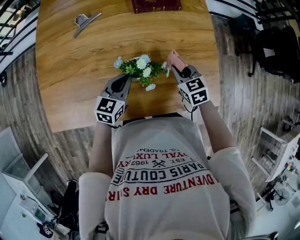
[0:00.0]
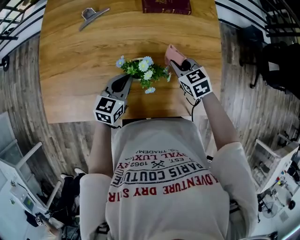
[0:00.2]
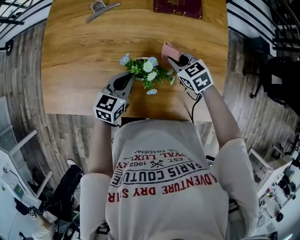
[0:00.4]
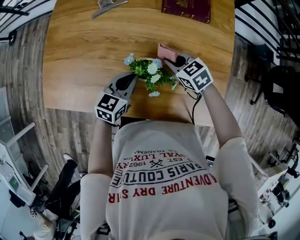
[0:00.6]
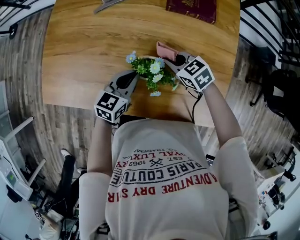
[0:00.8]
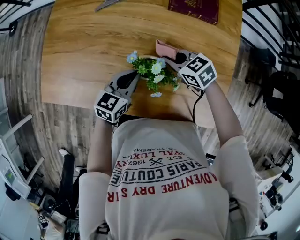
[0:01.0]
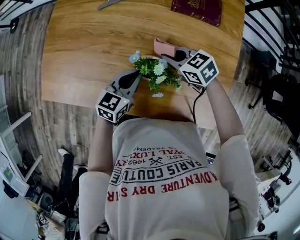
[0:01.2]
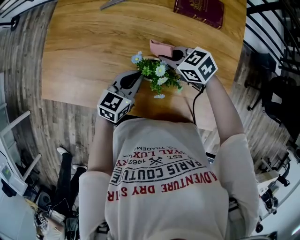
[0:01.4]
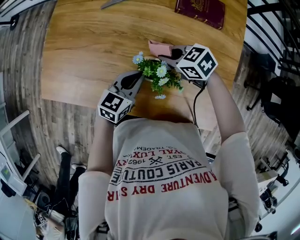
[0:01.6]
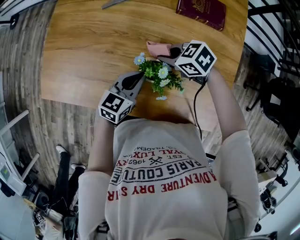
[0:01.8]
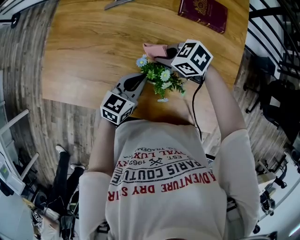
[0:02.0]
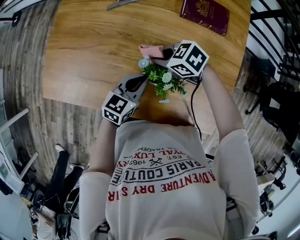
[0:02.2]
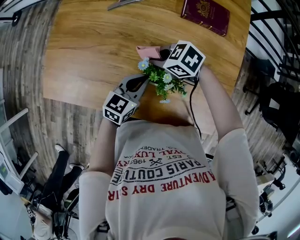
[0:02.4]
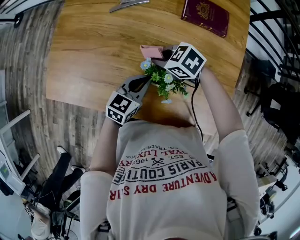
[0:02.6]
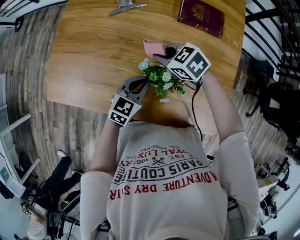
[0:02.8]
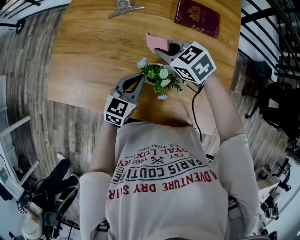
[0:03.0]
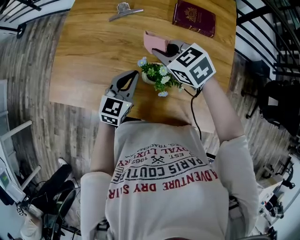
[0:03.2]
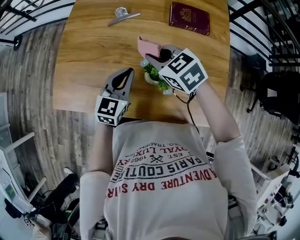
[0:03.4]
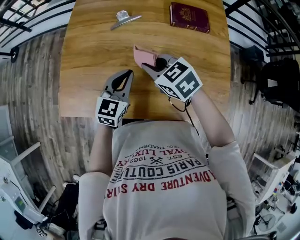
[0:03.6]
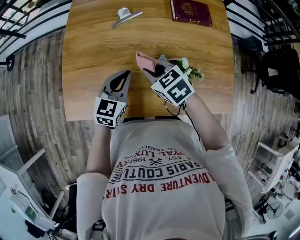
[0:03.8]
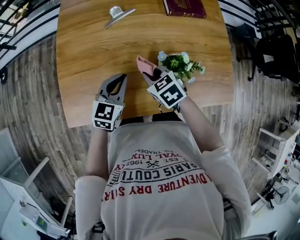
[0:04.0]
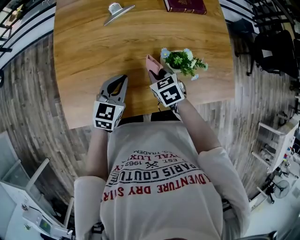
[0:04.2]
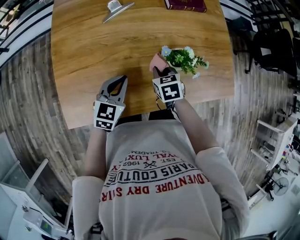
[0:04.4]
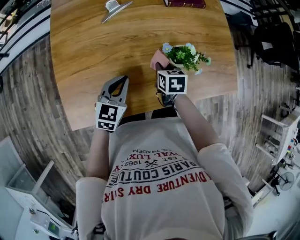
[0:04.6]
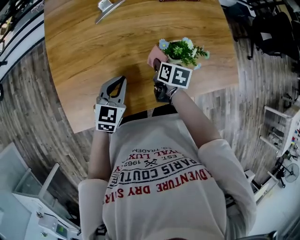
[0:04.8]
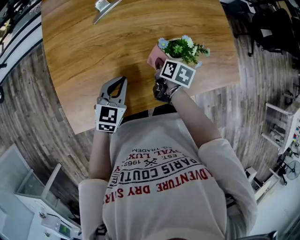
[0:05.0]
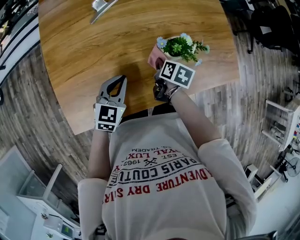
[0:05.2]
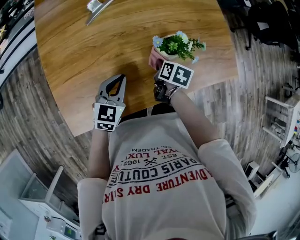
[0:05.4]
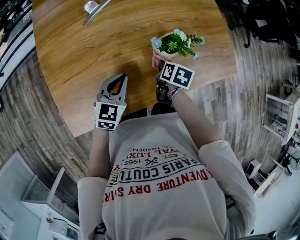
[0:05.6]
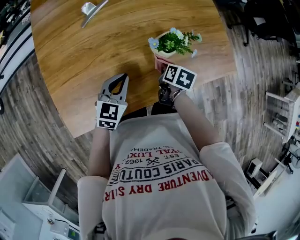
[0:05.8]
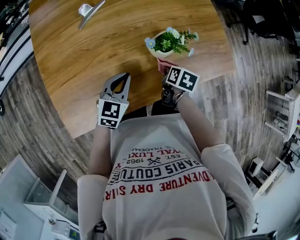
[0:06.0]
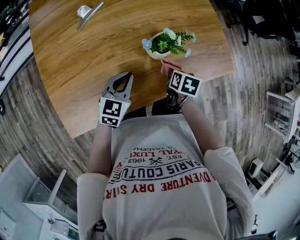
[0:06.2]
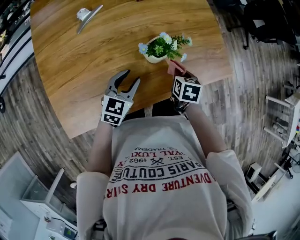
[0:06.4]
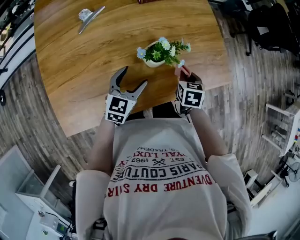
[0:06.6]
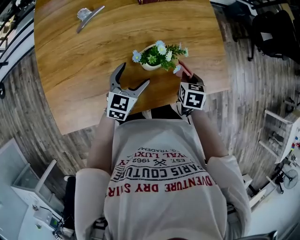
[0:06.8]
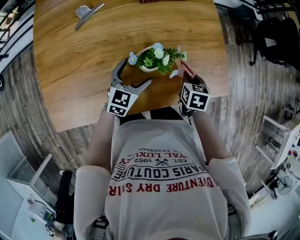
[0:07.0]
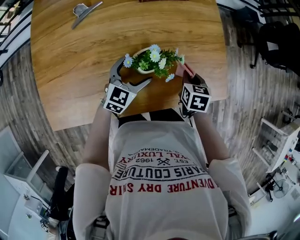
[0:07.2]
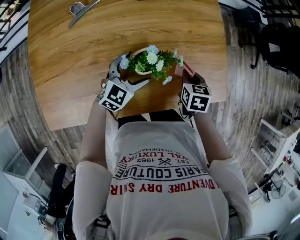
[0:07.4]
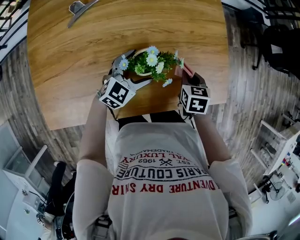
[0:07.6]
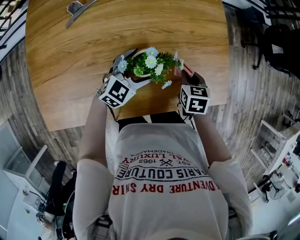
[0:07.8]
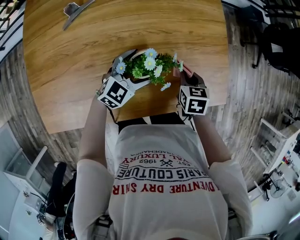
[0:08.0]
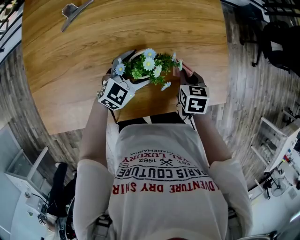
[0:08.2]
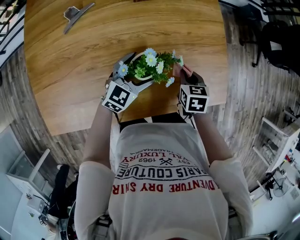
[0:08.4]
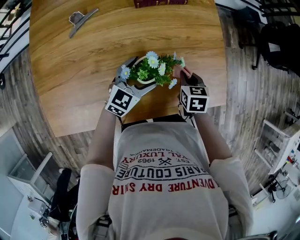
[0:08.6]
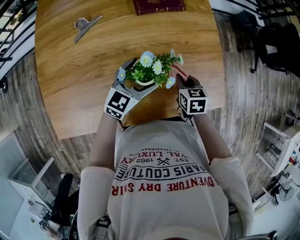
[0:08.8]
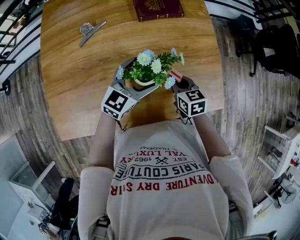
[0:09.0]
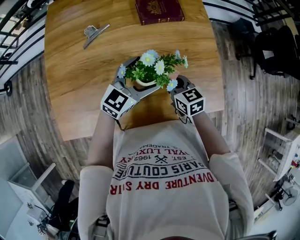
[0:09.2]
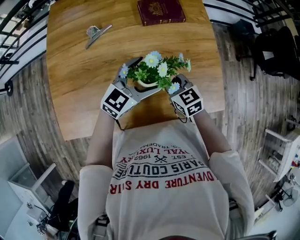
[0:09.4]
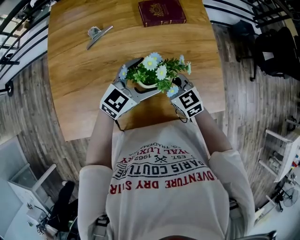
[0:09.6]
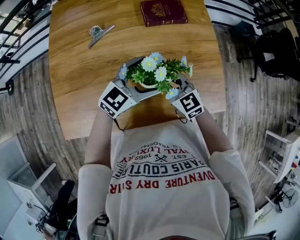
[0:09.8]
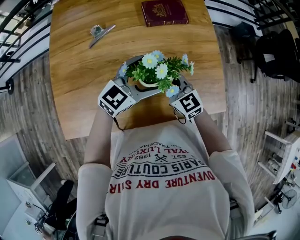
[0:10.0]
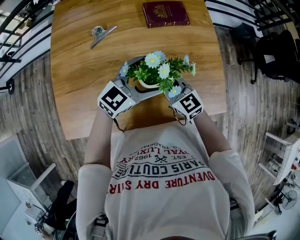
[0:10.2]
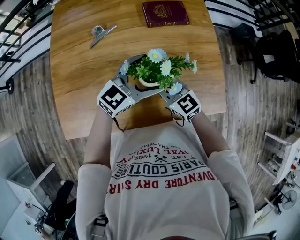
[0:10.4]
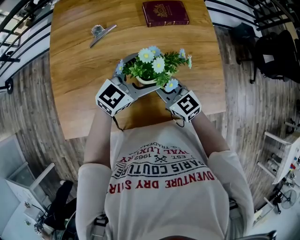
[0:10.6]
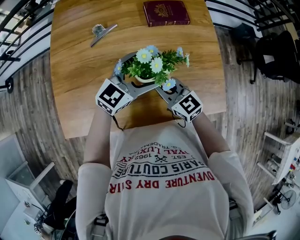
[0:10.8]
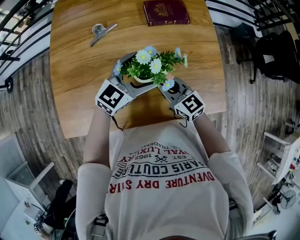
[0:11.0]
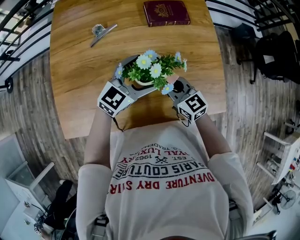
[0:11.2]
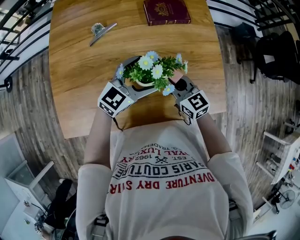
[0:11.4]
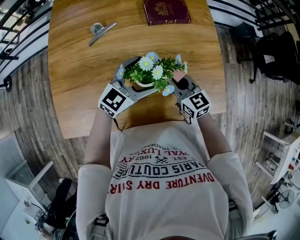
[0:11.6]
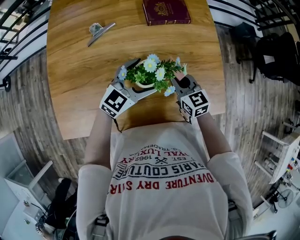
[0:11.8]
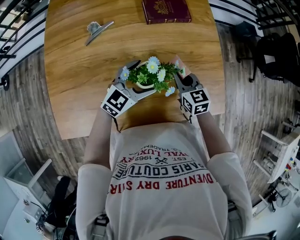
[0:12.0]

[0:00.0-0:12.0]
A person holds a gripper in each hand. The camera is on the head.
0:00.0 to 0:01.6: The right gripper shifts by about 15 cm, and swivels roughly 50 degrees.
0:01.6 to 0:03.0: The right gripper heads upward, covering some 10 cm.
0:03.0 to 0:04.4: The left gripper shifts by roughly 15 cm, while the right gripper goes about 10 cm downward, and rotates approximately 60 degrees.
0:04.4 to 0:06.0: The left gripper moves to the right, approximately 5 cm. Meanwhile the right gripper travels to the right by about 15 cm, and twists approximately 50 degrees clockwise, seen from behind.
0:06.0 to 0:07.6: The grippers both shift forward and to the right by approximately 20 cm. The right gripper swivels approximately 40 degrees. Meanwhile the left gripper opens its fingers.
0:07.6 to 0:09.0: The right gripper shifts approximately 10 cm to the left, and turns by roughly 20 degrees; the left gripper is displaced upward by roughly 10 cm.
0:09.0 to 0:10.4: The left gripper travels upward by about 5 cm; the right gripper moves to the left and upward, roughly 15 cm, and rotates roughly 40 degrees.
0:10.4 to 0:12.0: The left gripper is displaced downward by approximately 10 cm, while the right gripper is displaced to the right, downward and forward by roughly 15 cm, and turns by some 20 degrees.

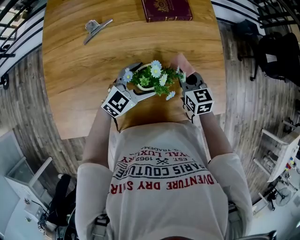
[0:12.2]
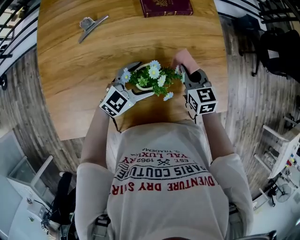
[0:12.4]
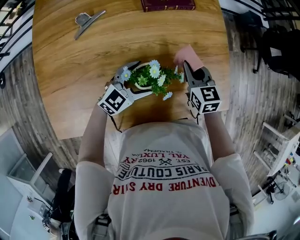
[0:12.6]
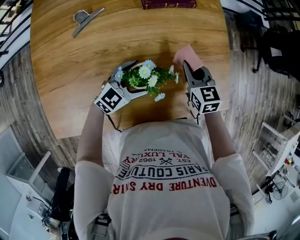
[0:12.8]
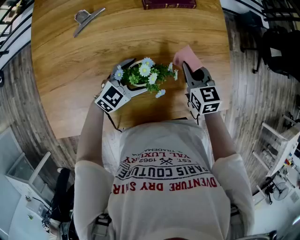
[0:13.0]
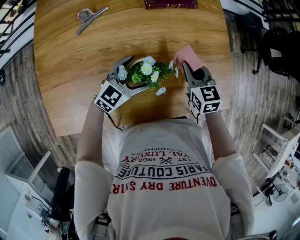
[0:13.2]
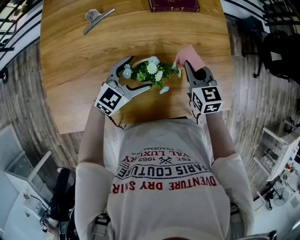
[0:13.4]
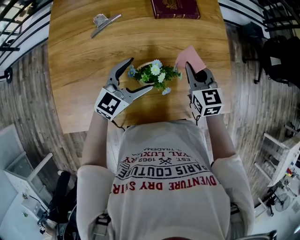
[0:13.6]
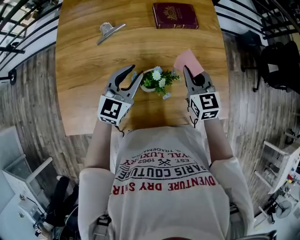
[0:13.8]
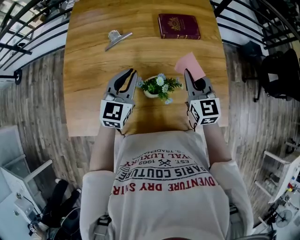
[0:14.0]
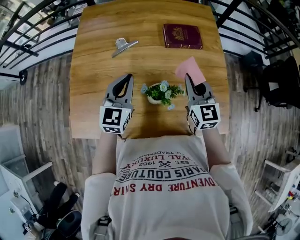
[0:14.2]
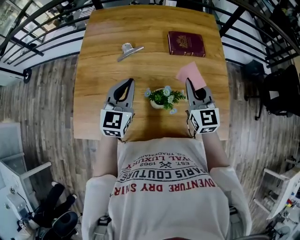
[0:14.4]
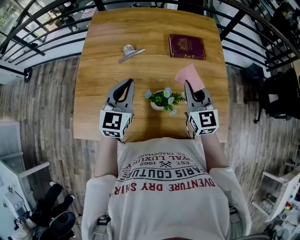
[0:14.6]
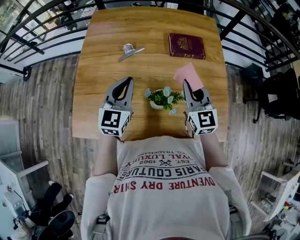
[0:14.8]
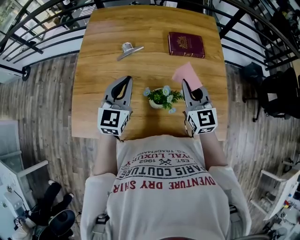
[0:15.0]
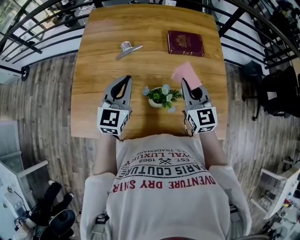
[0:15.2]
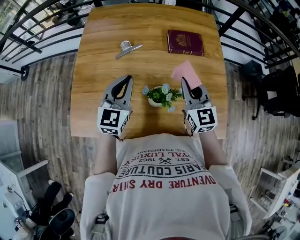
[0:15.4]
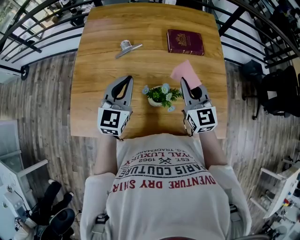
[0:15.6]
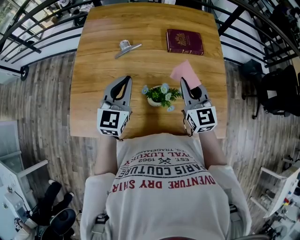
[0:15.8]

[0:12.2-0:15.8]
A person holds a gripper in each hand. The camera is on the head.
0:12.2 to 0:14.0: The right gripper is displaced upward by about 10 cm, while the left gripper travels to the left and upward by some 15 cm, rotates roughly 40 degrees, and closes.
0:14.0 to 0:15.8: The right gripper moves about 5 cm. Meanwhile the left gripper ends up roughly 5 cm from where it was.

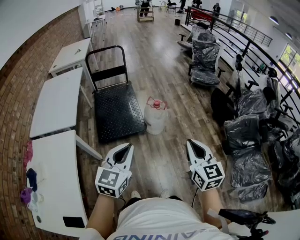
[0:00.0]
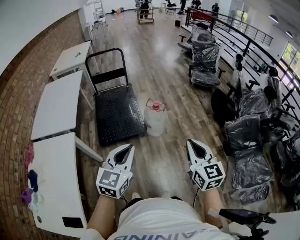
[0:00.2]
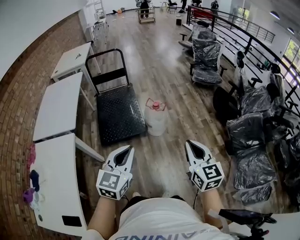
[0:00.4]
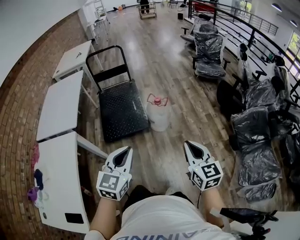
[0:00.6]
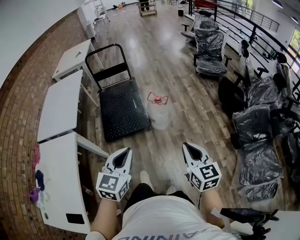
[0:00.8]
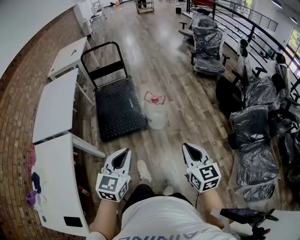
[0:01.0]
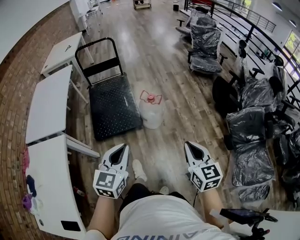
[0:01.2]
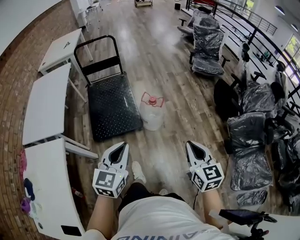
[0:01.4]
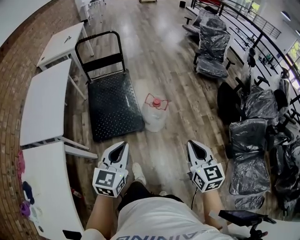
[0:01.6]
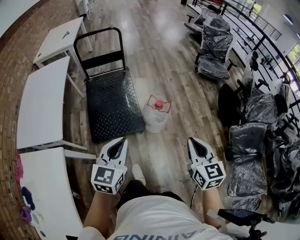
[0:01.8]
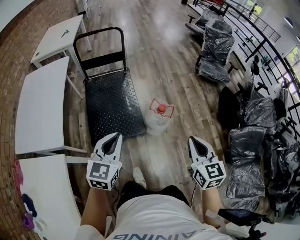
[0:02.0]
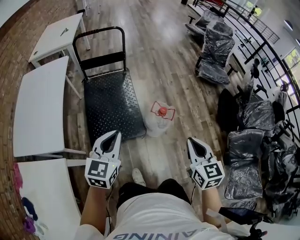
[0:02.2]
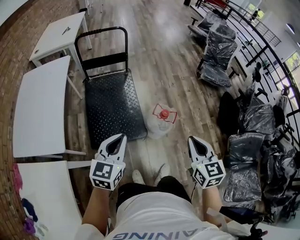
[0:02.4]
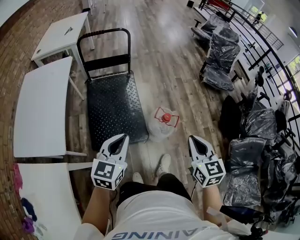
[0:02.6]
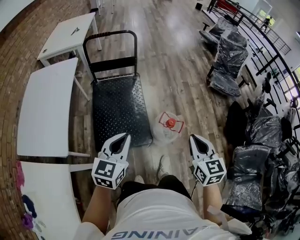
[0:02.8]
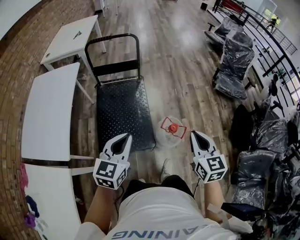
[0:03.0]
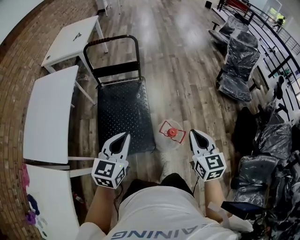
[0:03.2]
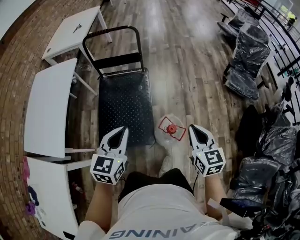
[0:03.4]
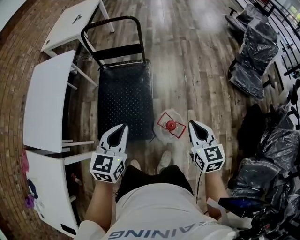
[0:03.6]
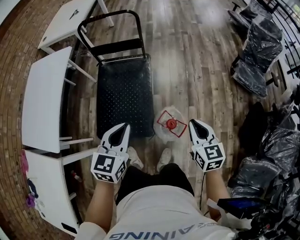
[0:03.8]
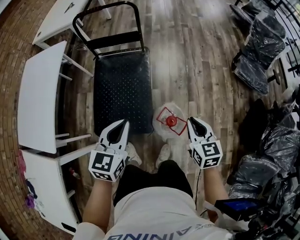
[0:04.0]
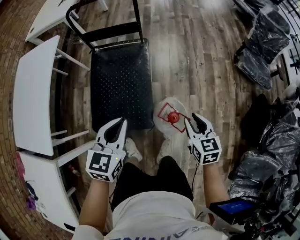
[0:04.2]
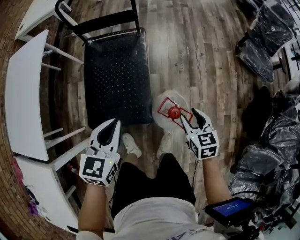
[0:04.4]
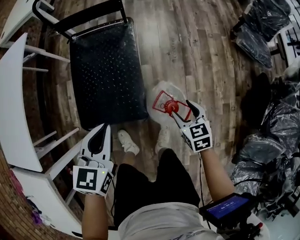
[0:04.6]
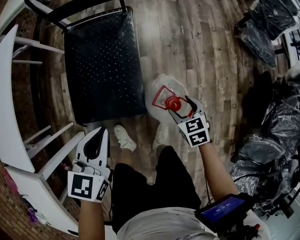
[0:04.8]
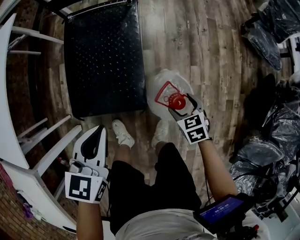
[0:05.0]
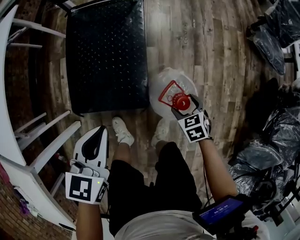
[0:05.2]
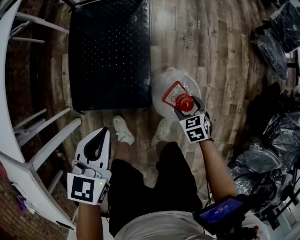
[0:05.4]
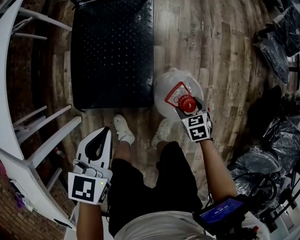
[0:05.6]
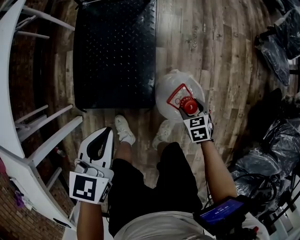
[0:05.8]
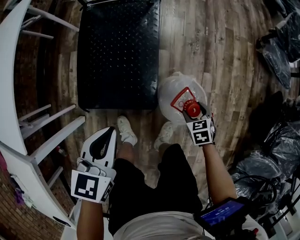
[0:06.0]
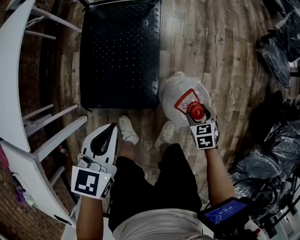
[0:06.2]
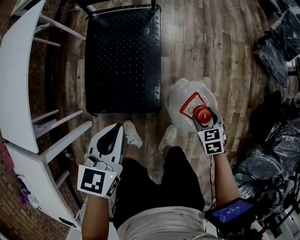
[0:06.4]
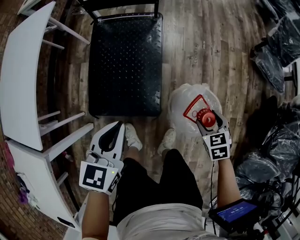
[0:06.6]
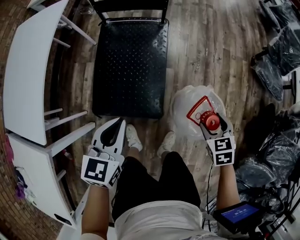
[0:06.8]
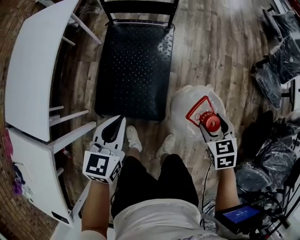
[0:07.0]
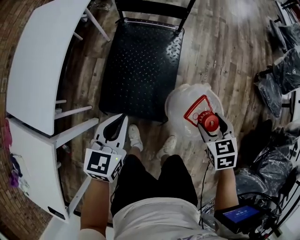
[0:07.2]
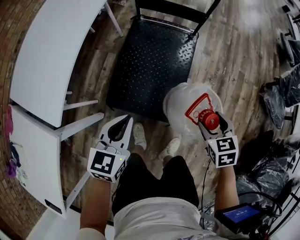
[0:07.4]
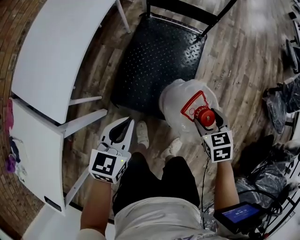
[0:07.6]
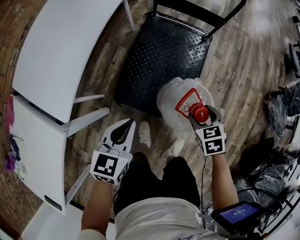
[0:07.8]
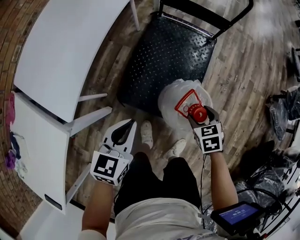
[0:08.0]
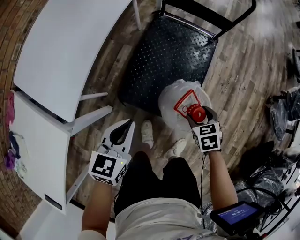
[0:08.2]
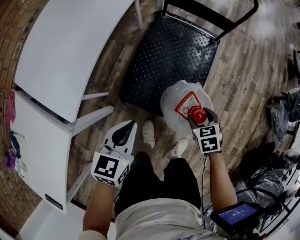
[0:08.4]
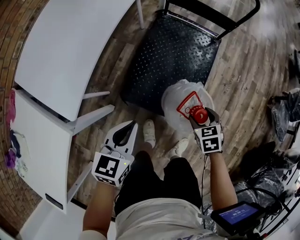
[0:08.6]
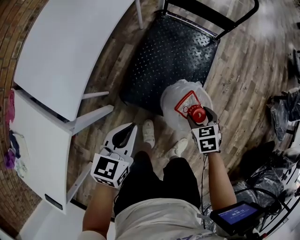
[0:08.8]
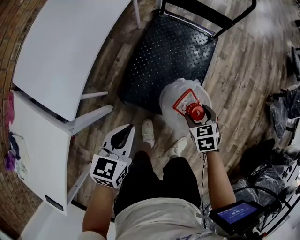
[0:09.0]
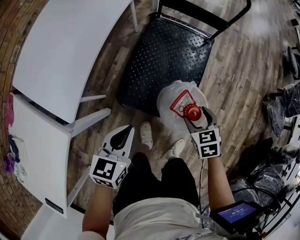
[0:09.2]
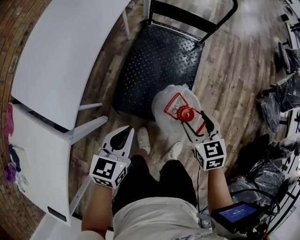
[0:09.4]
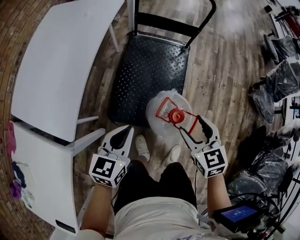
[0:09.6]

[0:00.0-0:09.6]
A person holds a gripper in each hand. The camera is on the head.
0:00.0 to 0:01.6: Both grippers travel together forward and downward, roughly 20 cm.
0:01.6 to 0:03.2: The grippers both shift forward by about 30 cm.
0:03.2 to 0:04.8: The left gripper is displaced downward by approximately 20 cm. Meanwhile the right gripper goes approximately 40 cm downward, angles its fingers downward, by roughly 30 degrees, and opens up.
0:04.8 to 0:06.4: The right gripper reaches approximately 10 cm downward, then returns.
0:06.4 to 0:08.0: The two grippers go about 25 cm to the left.
0:08.0 to 0:09.6: The right gripper heads upward, covering approximately 15 cm, and swivels roughly 20 degrees.
